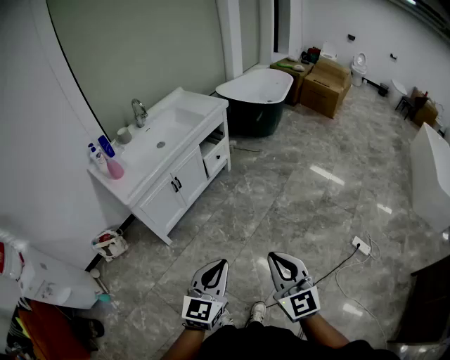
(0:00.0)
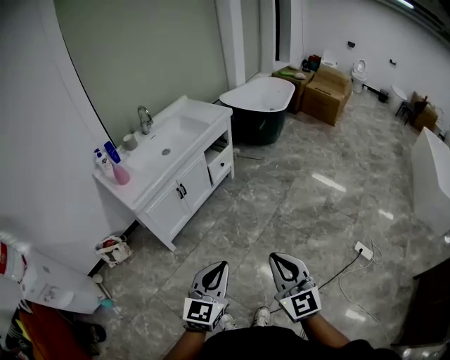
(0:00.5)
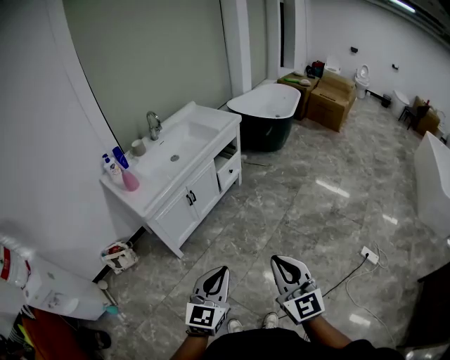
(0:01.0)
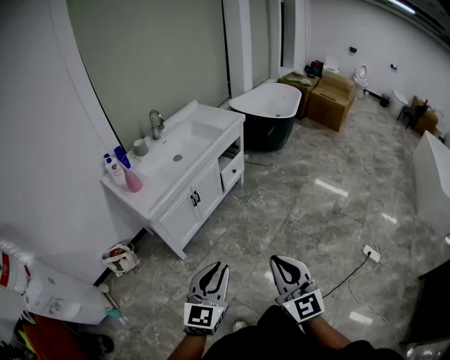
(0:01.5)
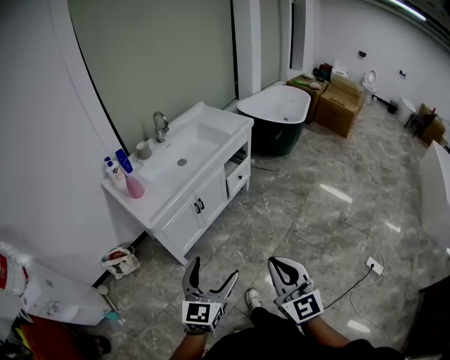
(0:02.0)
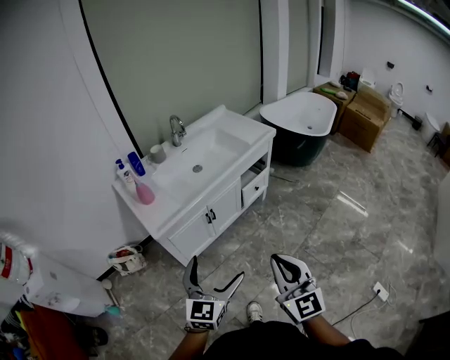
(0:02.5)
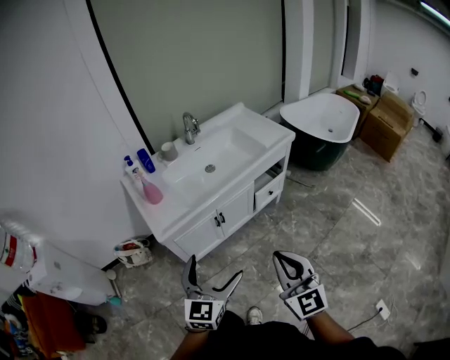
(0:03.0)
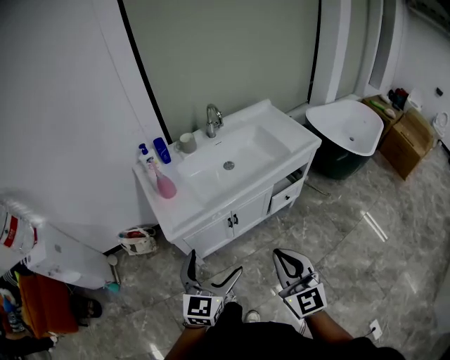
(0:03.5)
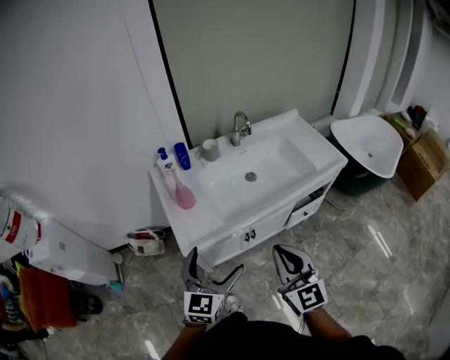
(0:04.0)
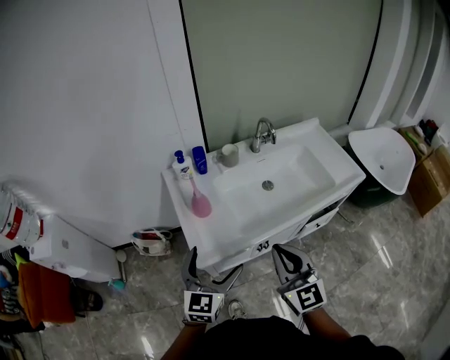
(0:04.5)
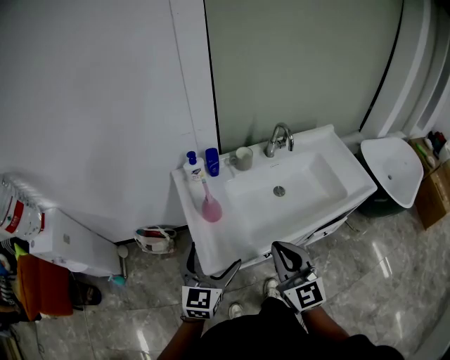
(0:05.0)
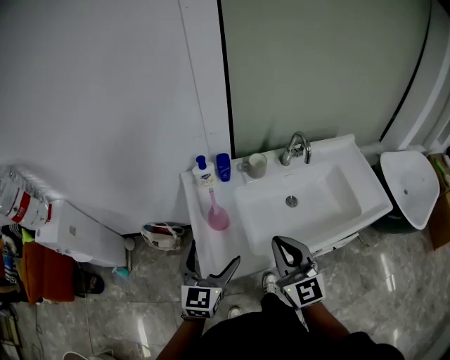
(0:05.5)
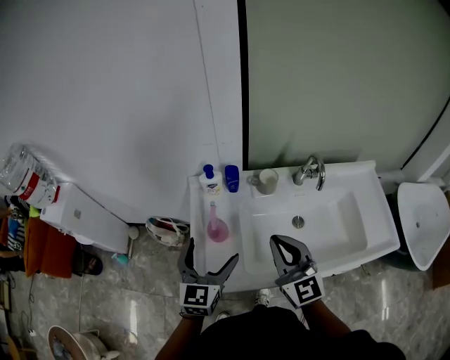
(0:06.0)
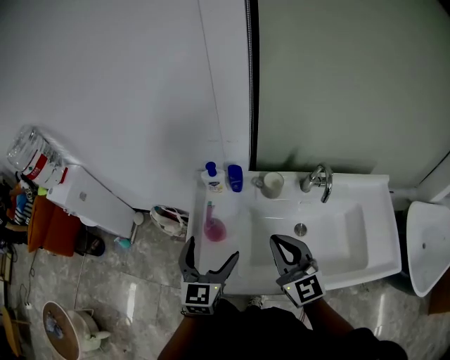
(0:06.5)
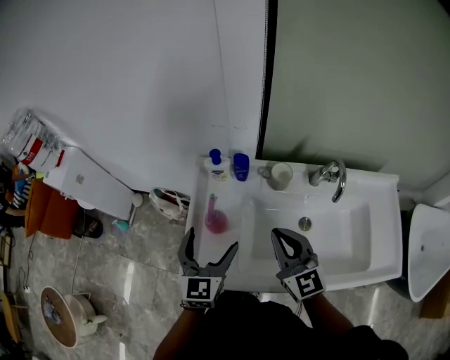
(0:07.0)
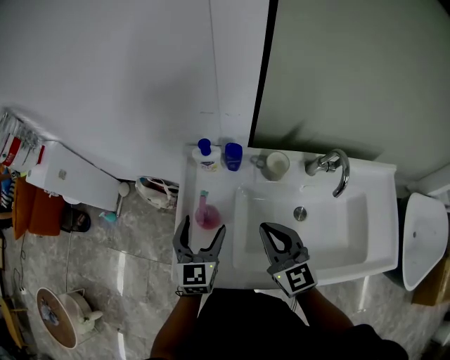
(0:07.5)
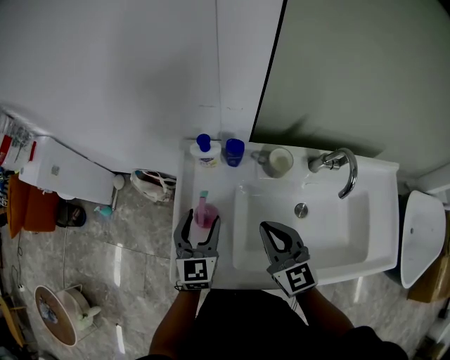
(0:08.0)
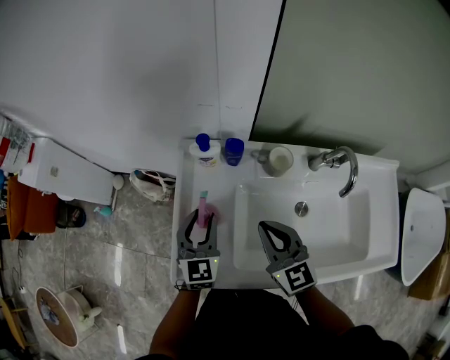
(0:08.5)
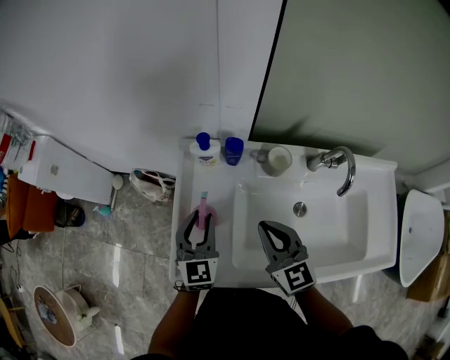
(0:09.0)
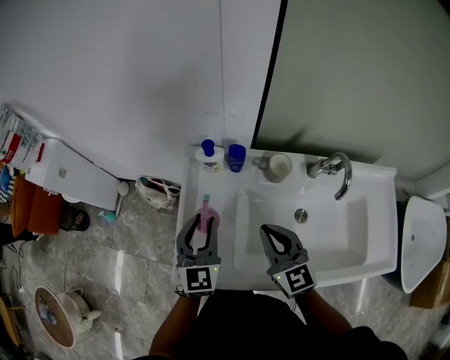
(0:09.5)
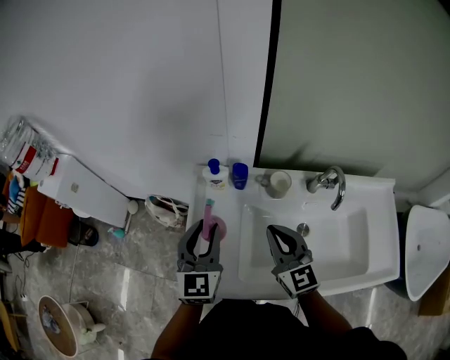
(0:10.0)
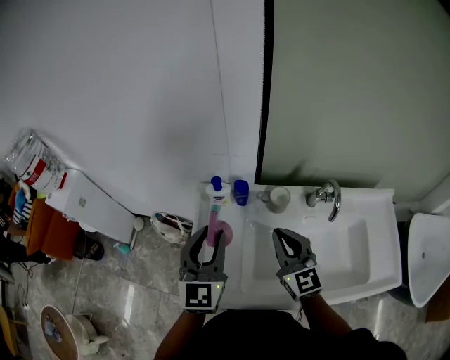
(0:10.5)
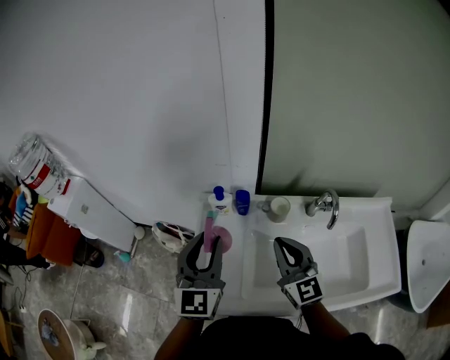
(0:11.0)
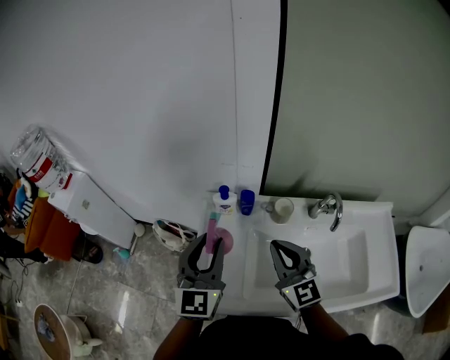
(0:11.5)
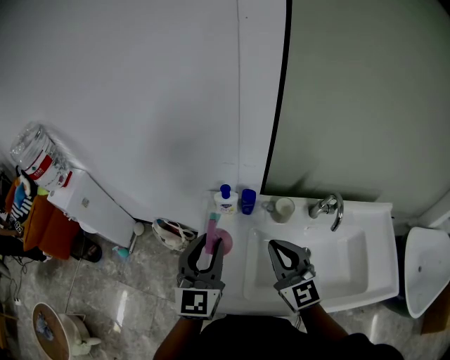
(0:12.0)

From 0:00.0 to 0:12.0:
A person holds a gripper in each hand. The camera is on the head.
From 0:00.0 to 0:02.0: The two grippers go approximately 20 cm to the left and forward. The left gripper opens its fingers.
From 0:02.0 to 0:04.0: The left gripper ends up about 30 cm from where it was, and changes its angle by about 30 degrees, while the right gripper ends up roughly 40 cm from where it was, and changes its angle by some 30 degrees.
From 0:04.0 to 0:06.0: The right gripper moves approximately 30 cm, and turns by approximately 20 degrees, while the left gripper moves roughly 25 cm, and swivels roughly 30 degrees.
From 0:06.0 to 0:08.0: Both grippers move downward and forward, some 15 cm. The left gripper closes up.
From 0:08.0 to 0:10.0: The right gripper travels upward by roughly 5 cm. Meanwhile the left gripper goes about 15 cm upward.
From 0:10.0 to 0:12.0: Both grippers travel together upward, approximately 5 cm.

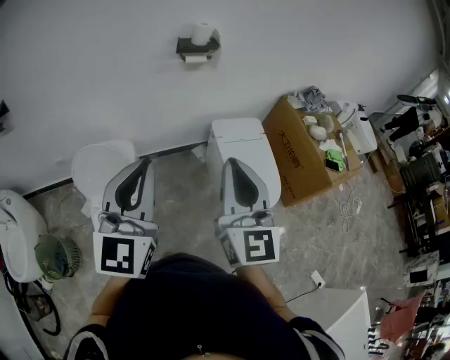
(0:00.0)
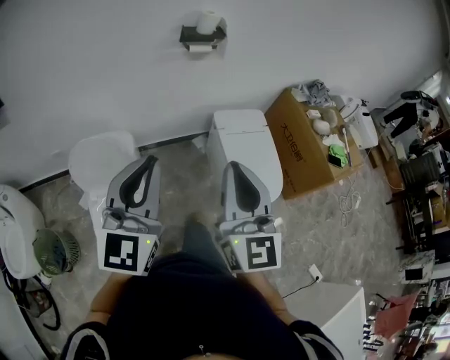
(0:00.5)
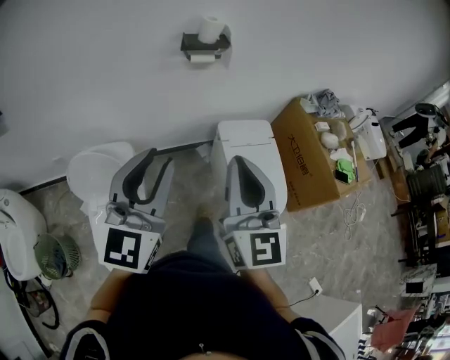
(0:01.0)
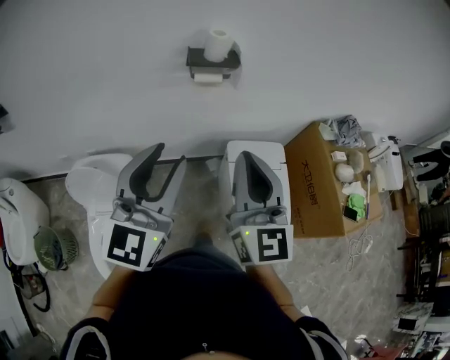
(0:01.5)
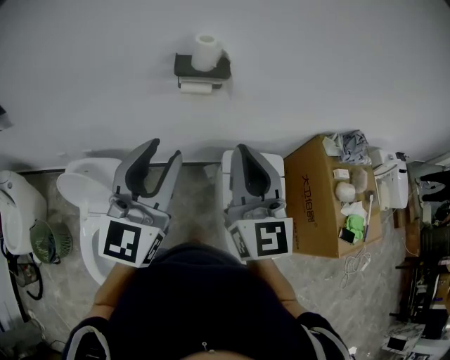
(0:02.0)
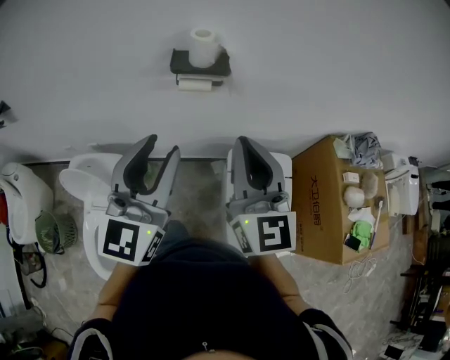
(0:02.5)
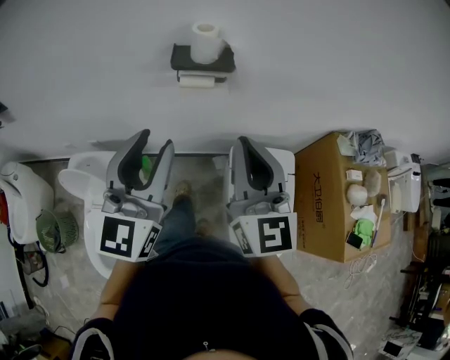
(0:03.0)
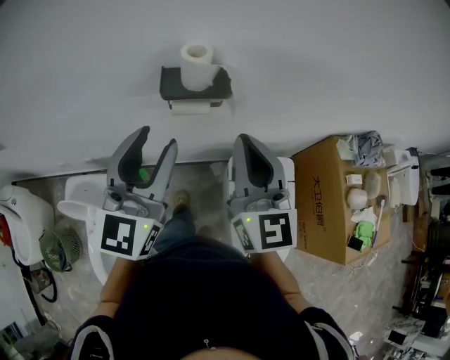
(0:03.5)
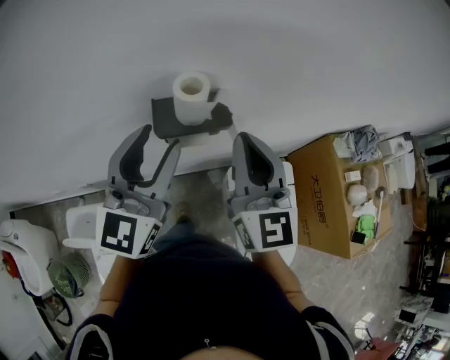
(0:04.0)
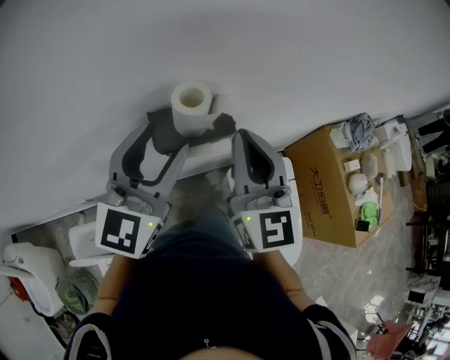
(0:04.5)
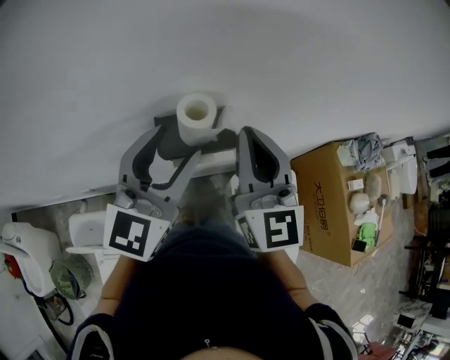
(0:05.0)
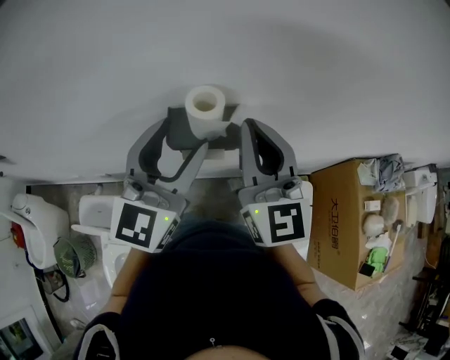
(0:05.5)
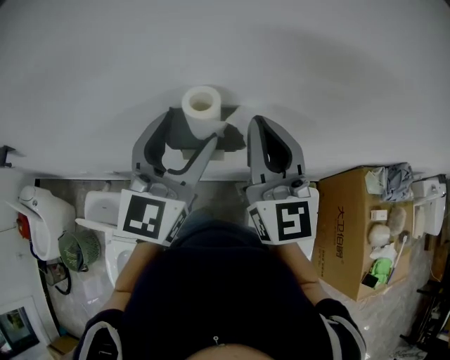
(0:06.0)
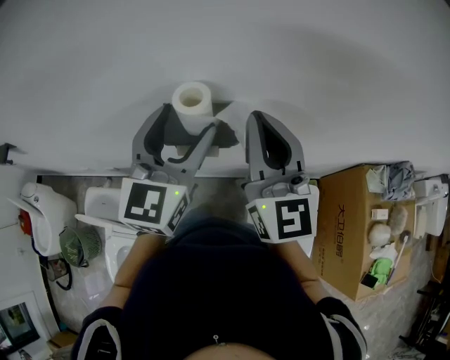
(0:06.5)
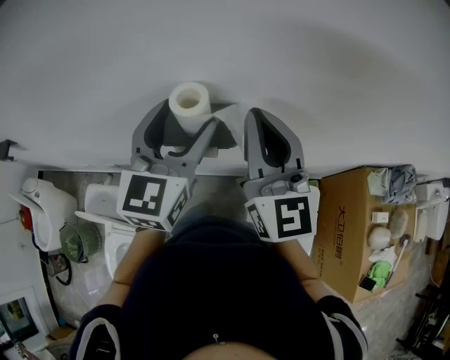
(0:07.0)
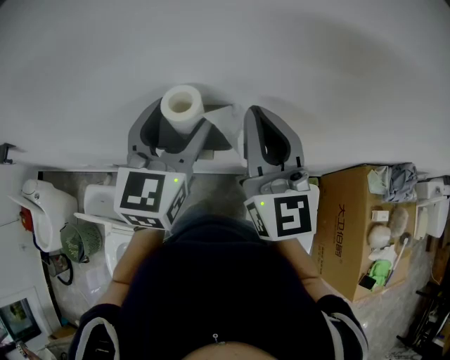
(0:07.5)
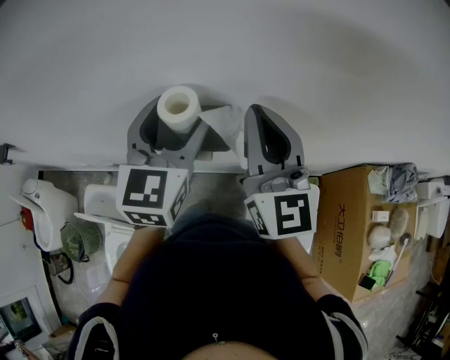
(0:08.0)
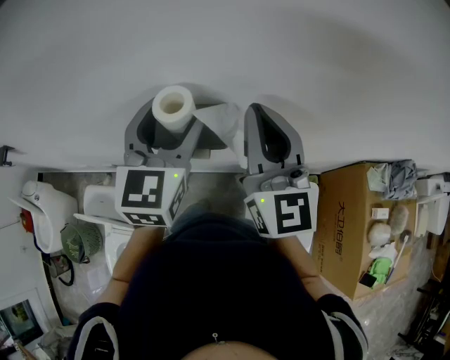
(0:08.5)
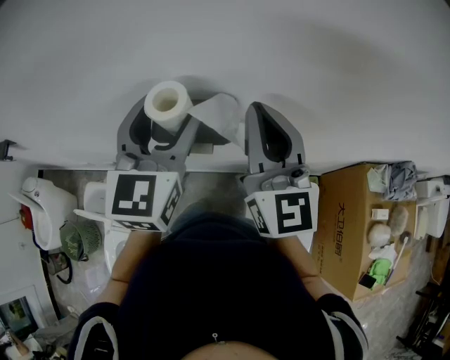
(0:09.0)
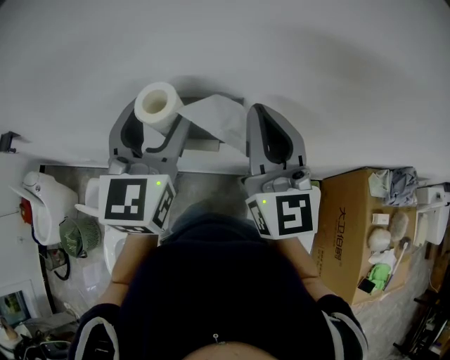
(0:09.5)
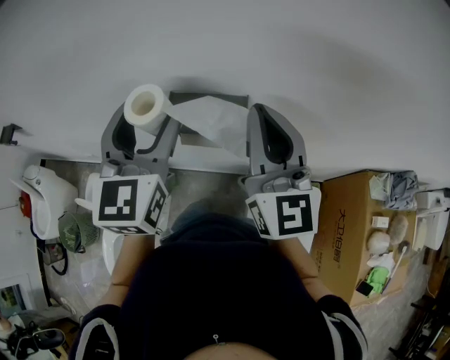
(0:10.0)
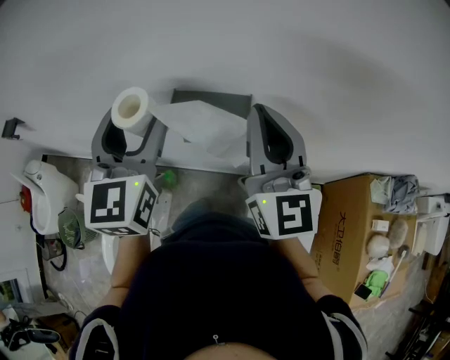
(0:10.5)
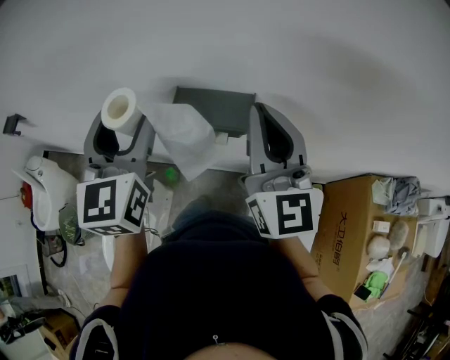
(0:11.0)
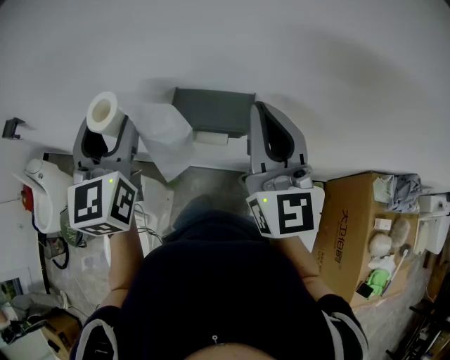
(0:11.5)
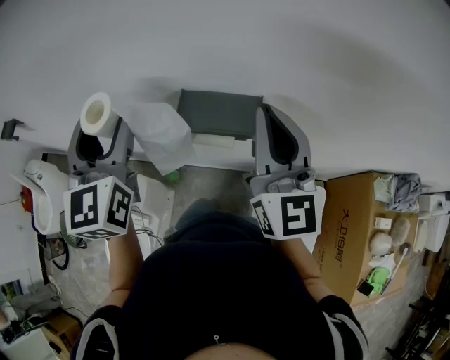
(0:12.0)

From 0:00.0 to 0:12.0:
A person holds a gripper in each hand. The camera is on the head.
From 0:00.0 to 0:02.0: Both grippers travel together forward, approximately 35 cm. The left gripper opens its fingers.
From 0:02.0 to 0:04.0: The grippers both shift forward by approximately 25 cm.
From 0:04.0 to 0:06.0: Both grippers travel together forward, roughly 5 cm. The left gripper opens.
From 0:06.0 to 0:08.0: The left gripper goes some 5 cm forward.
From 0:08.0 to 0:10.0: The left gripper is displaced to the left and backward by some 10 cm.
From 0:10.0 to 0:12.0: The left gripper travels to the left by roughly 10 cm.

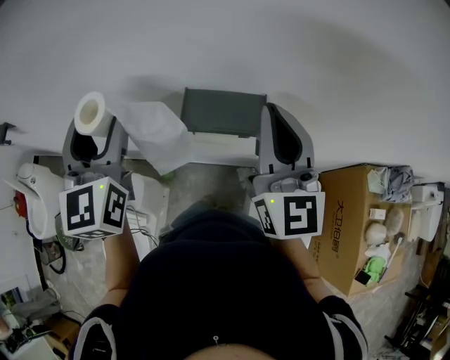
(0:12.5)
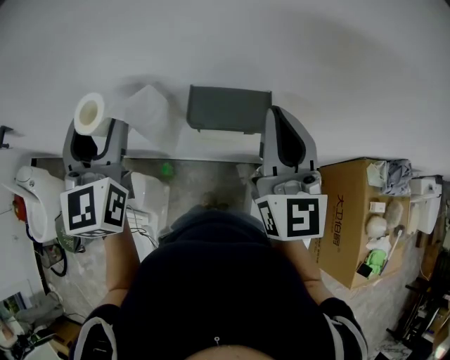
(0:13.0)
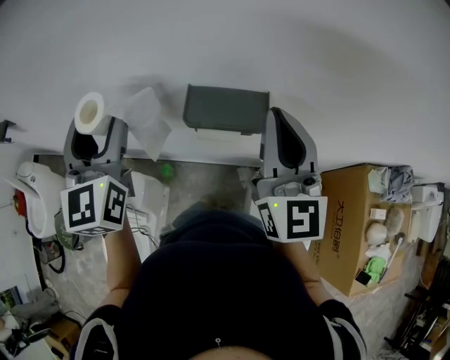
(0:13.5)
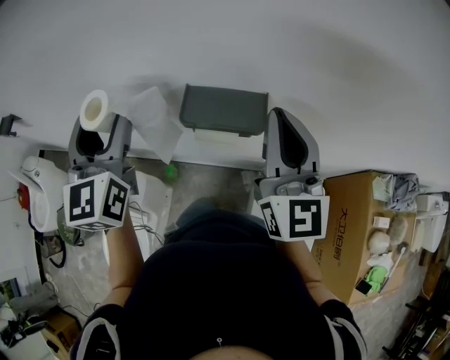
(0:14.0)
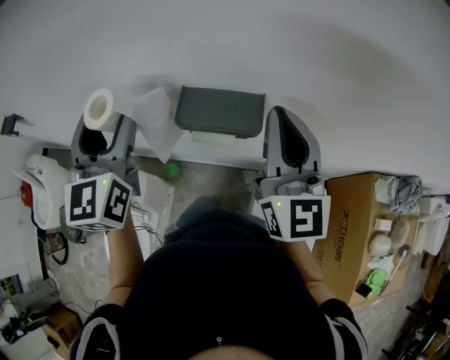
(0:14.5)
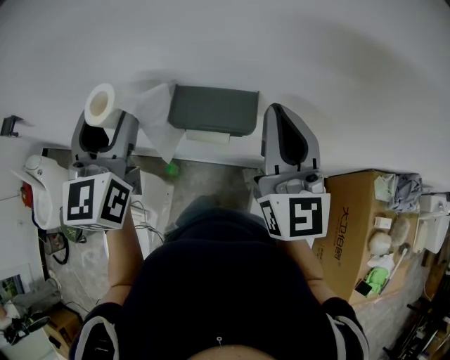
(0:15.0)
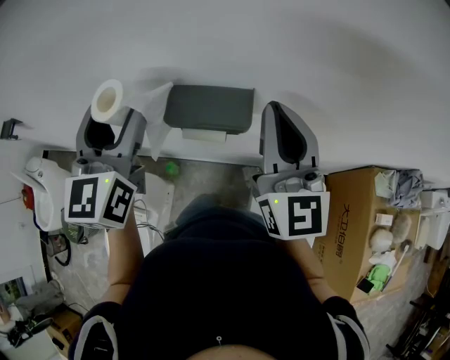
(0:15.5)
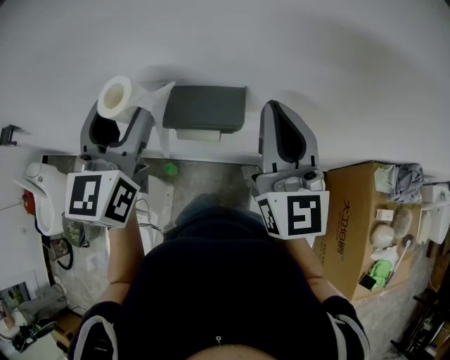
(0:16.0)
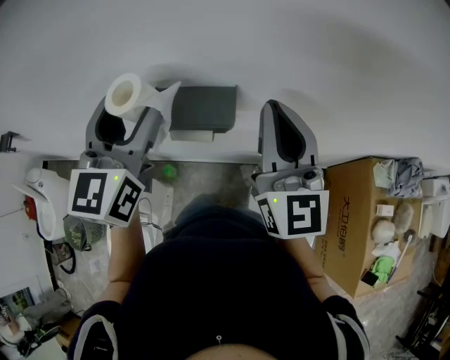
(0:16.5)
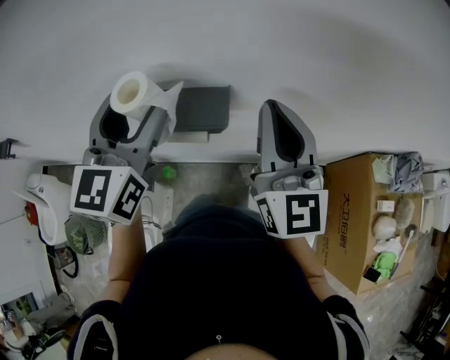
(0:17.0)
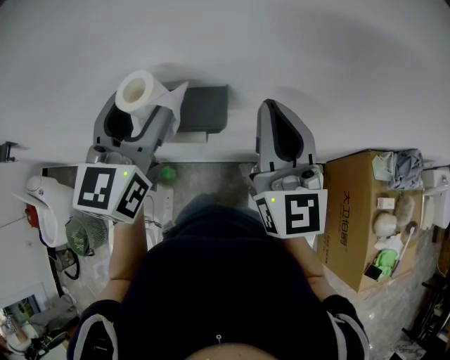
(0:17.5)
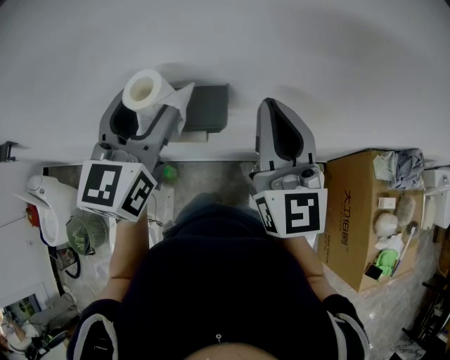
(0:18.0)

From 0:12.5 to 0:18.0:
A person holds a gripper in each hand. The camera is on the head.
From 0:12.5 to 0:14.5: The grippers move only a little.
From 0:14.5 to 0:16.0: The left gripper travels to the right by approximately 10 cm.
From 0:16.0 to 0:18.0: The left gripper is displaced to the right by some 5 cm.
